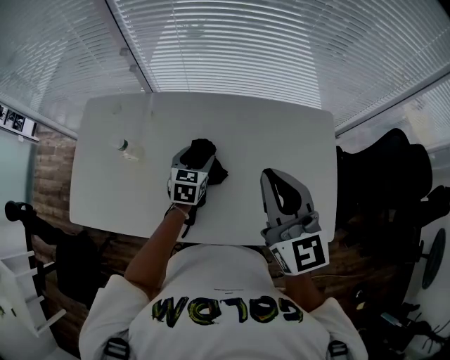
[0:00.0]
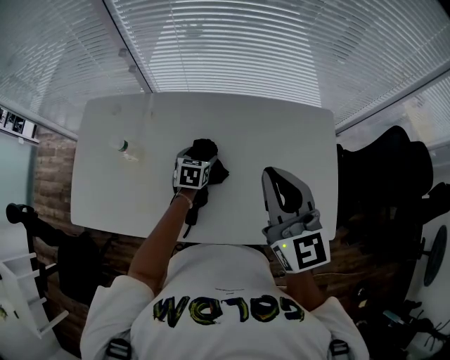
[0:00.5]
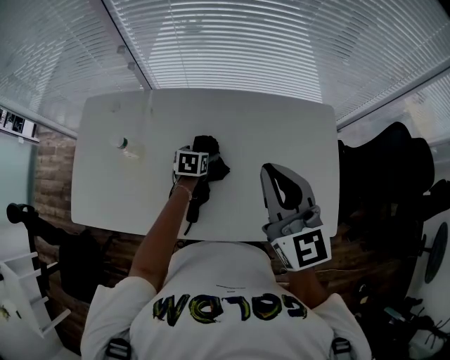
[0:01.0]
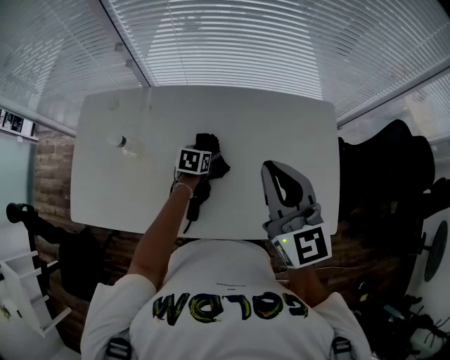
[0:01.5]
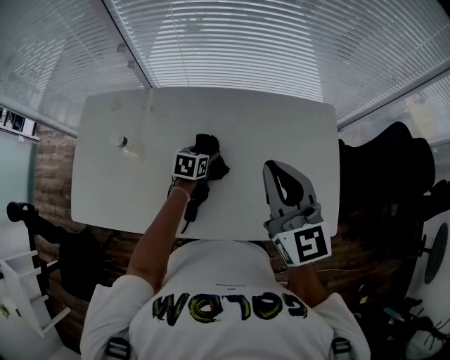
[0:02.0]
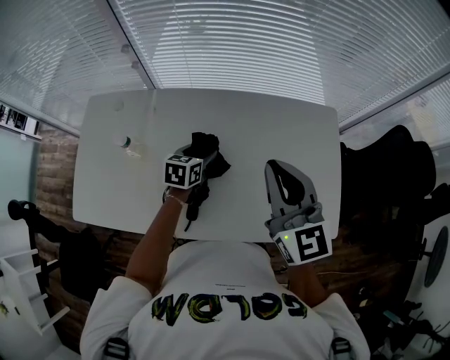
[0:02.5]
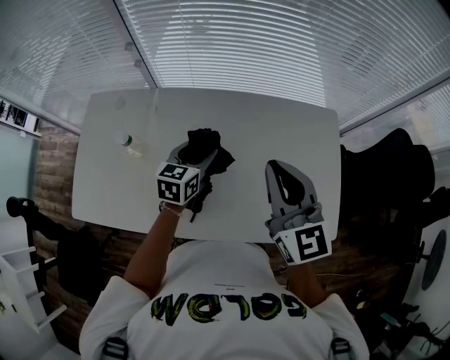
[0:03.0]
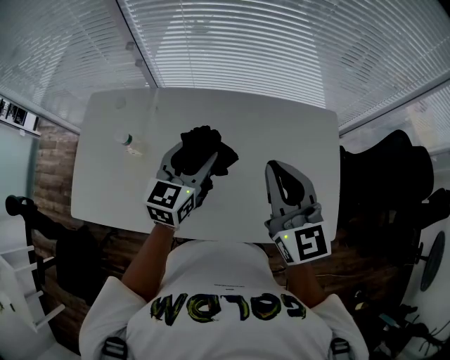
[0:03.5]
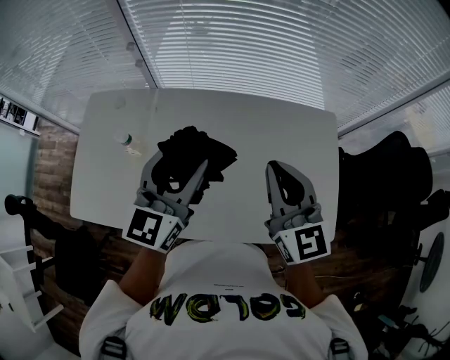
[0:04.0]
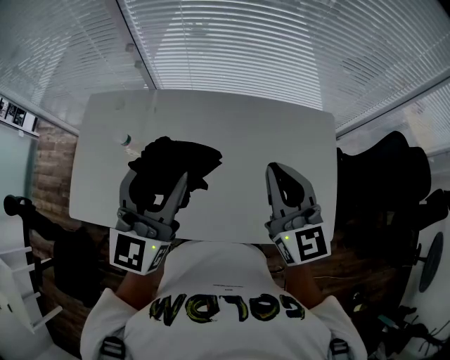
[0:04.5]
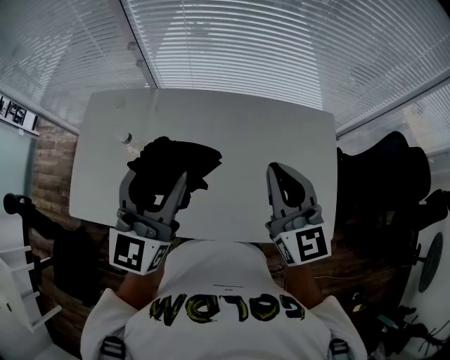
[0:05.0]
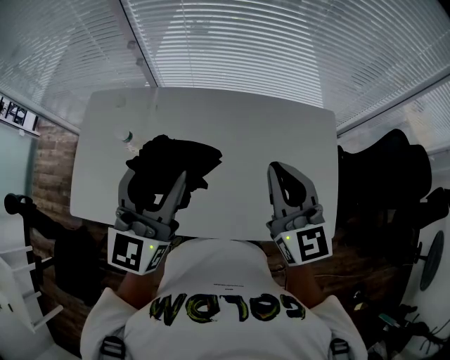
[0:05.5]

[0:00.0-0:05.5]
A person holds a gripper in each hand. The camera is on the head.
0:00.0 to 0:02.0: The left gripper is displaced downward by some 5 cm, rotates about 20 degrees, and opens and closes again.
0:02.0 to 0:03.5: The left gripper is displaced upward by approximately 25 cm, and angles its fingers upward, by about 30 degrees.
0:03.5 to 0:05.5: The left gripper goes about 15 cm upward, backward and to the left, and rotates about 20 degrees.

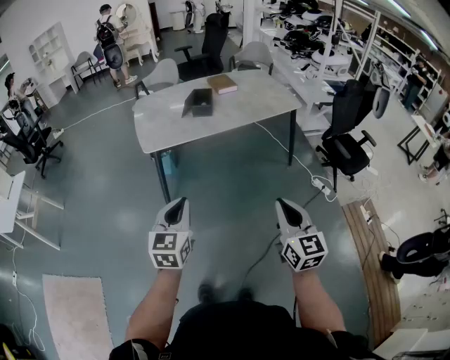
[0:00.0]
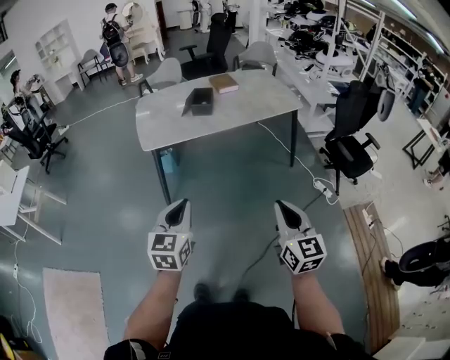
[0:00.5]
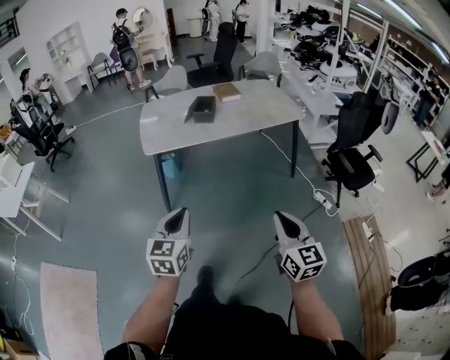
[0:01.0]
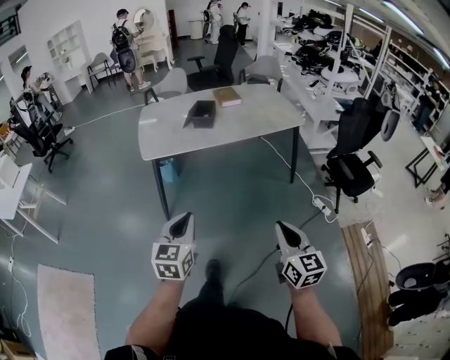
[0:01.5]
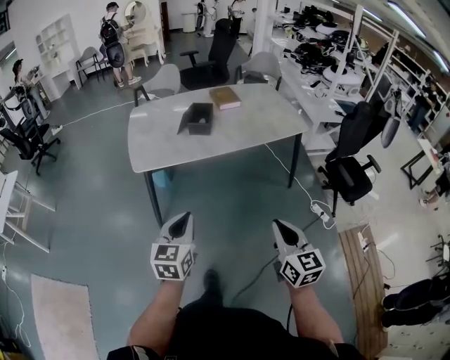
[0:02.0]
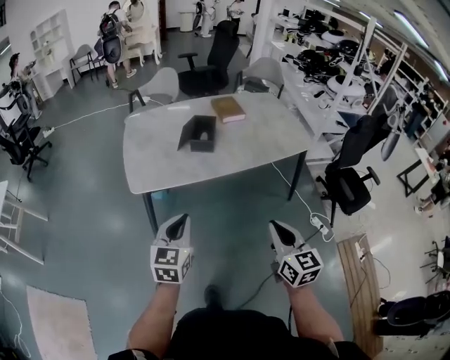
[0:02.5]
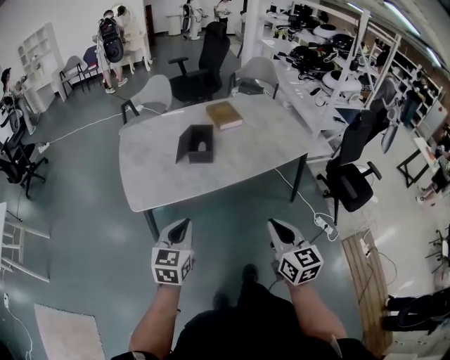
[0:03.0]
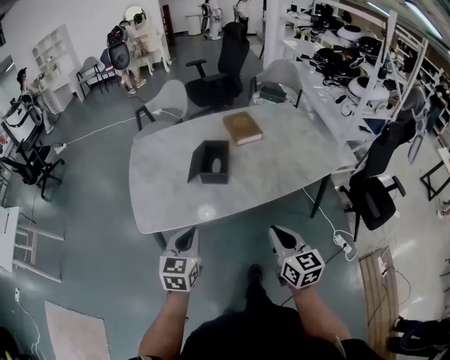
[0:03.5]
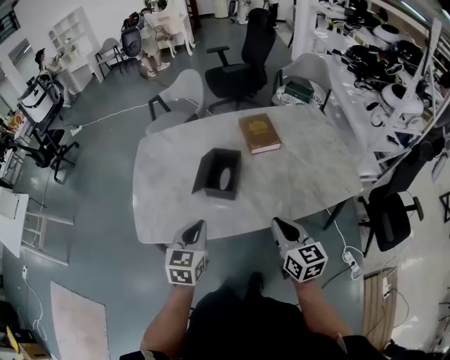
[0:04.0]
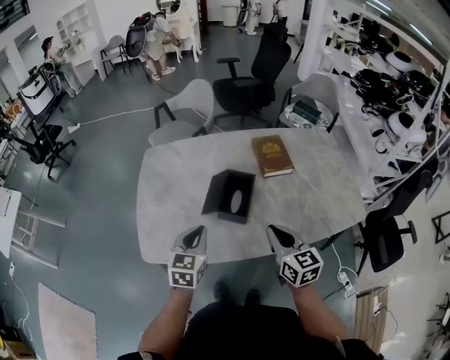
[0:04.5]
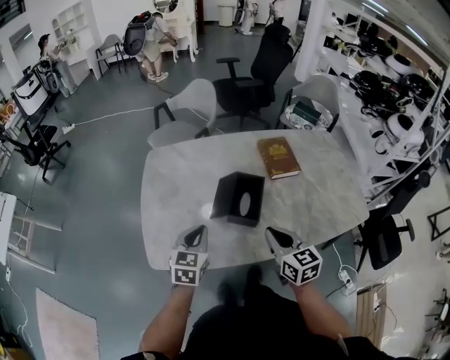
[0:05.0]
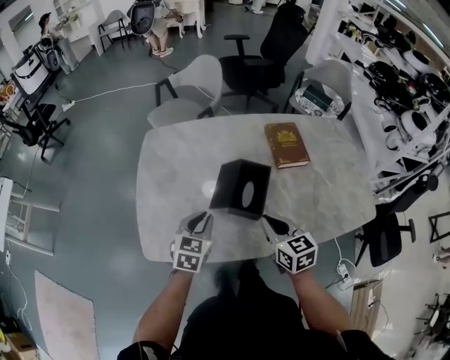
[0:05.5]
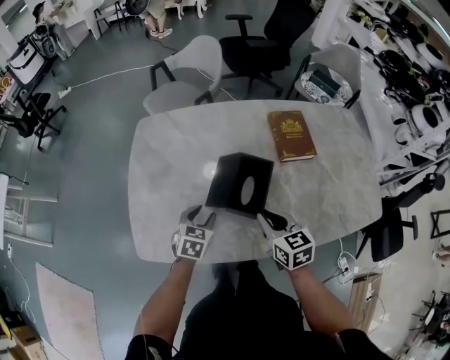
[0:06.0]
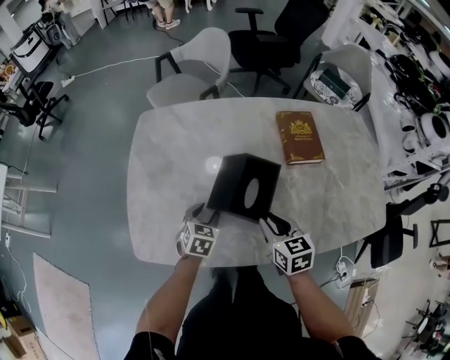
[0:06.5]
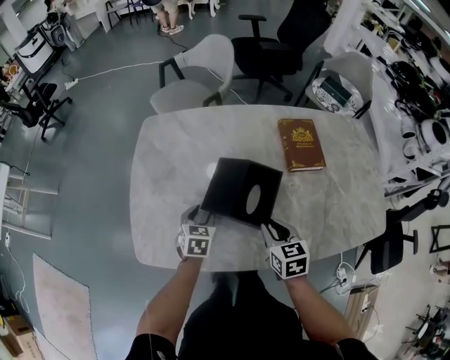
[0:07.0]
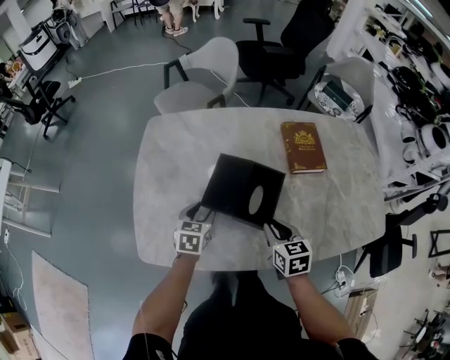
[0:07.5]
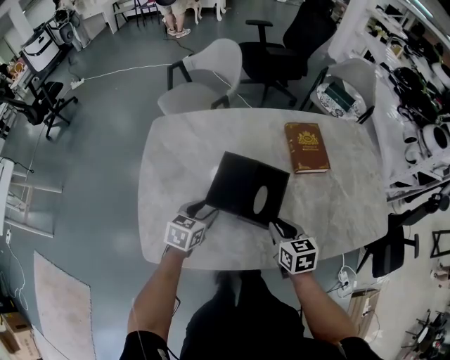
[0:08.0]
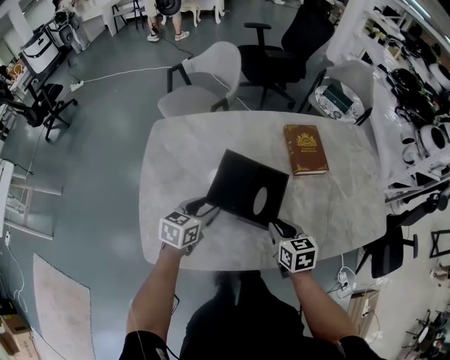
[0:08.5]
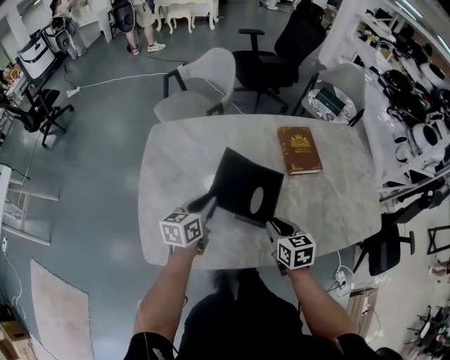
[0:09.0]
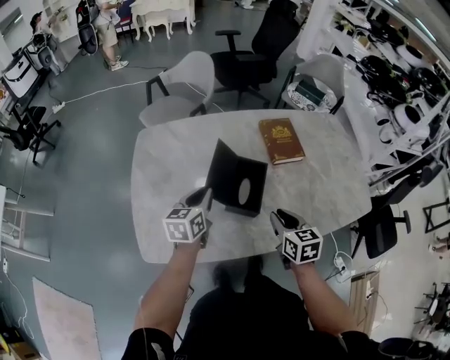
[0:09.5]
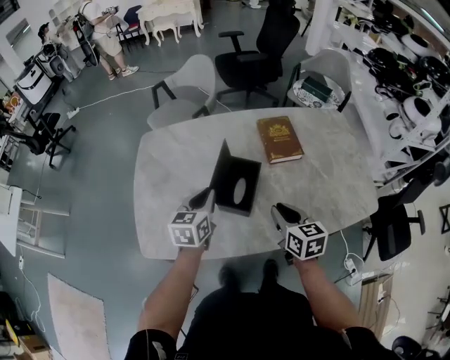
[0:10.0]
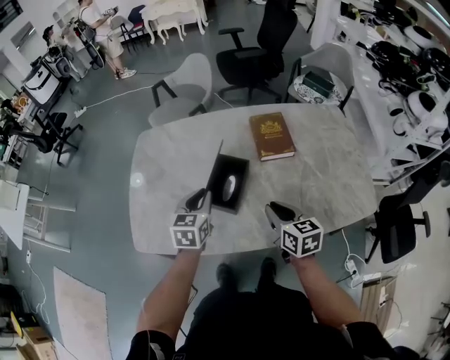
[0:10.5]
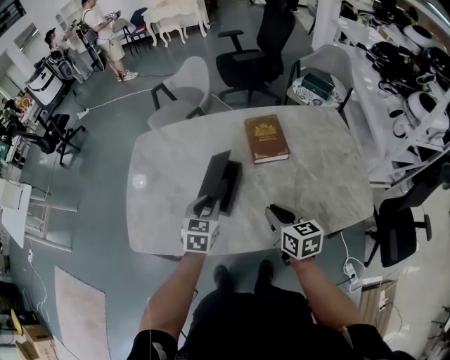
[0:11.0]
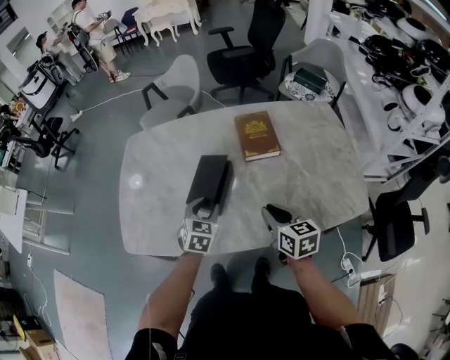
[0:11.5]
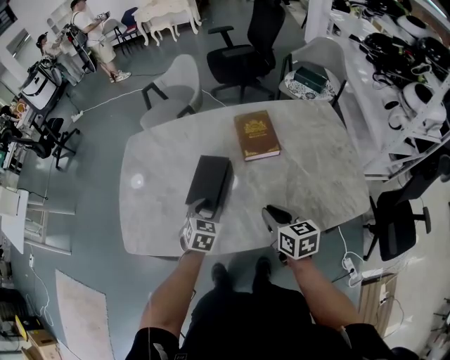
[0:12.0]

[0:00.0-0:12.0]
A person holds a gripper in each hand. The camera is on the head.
0:00.0 to 0:02.0: The left gripper is displaced forward and to the right by approximately 15 cm; the right gripper travels forward by about 15 cm.
0:02.0 to 0:04.0: The two grippers travel together, forward, about 50 cm.
0:04.0 to 0:06.0: The right gripper is displaced forward, to the left and downward by some 30 cm, and swivels some 20 degrees, while the left gripper moves forward, downward and to the left, some 30 cm, and opens.
0:06.0 to 0:08.0: The grippers stay close to where they were, moving slightly.
0:08.0 to 0:10.0: The two grippers go about 15 cm upward and to the right. The left gripper closes.
0:10.0 to 0:12.0: The right gripper goes about 10 cm to the right. The left gripper shifts about 15 cm to the right and downward, rotates approximately 30 degrees, and opens up.

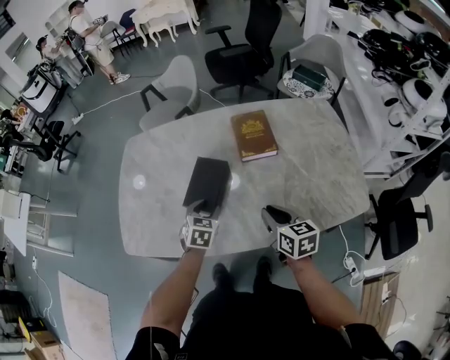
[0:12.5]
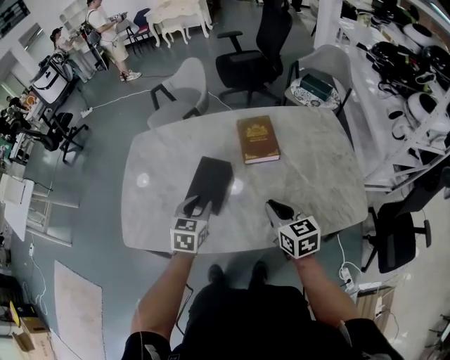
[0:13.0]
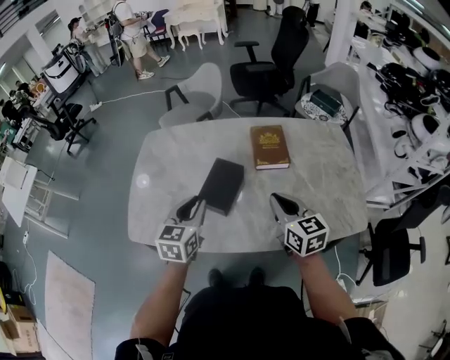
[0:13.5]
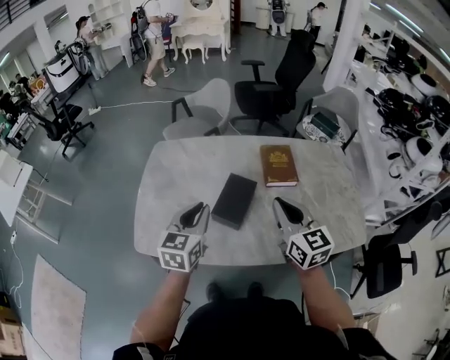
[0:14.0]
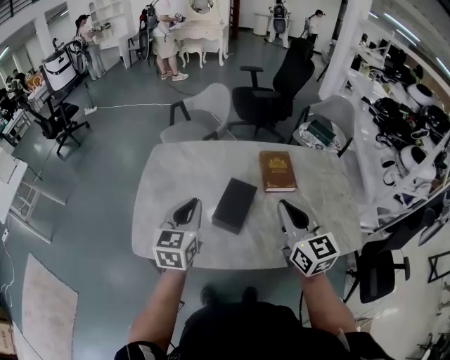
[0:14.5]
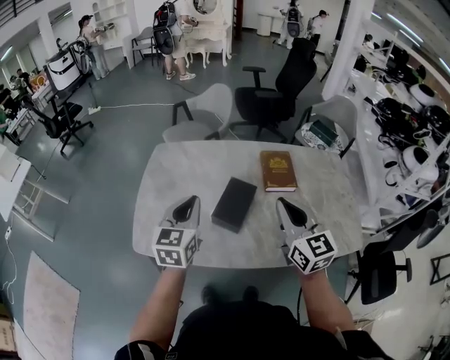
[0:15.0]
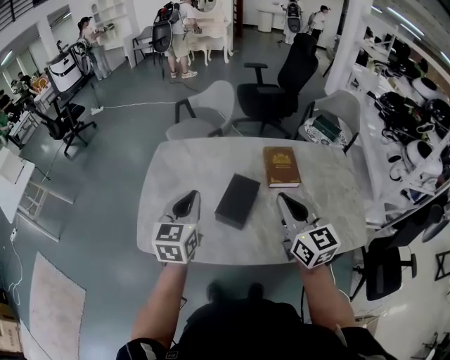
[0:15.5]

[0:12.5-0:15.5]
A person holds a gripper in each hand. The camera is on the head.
0:12.5 to 0:14.0: Both grippers move upward and to the left, some 25 cm. The left gripper turns by some 30 degrees, and closes up; the right gripper swivels roughly 30 degrees.
0:14.0 to 0:15.5: The left gripper shifts by approximately 5 cm.

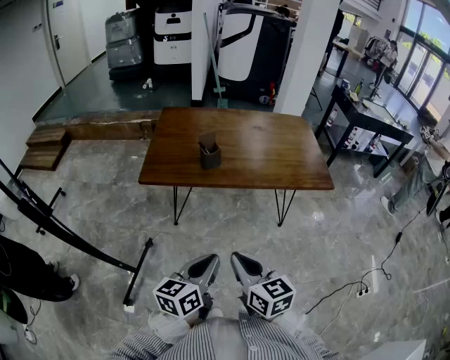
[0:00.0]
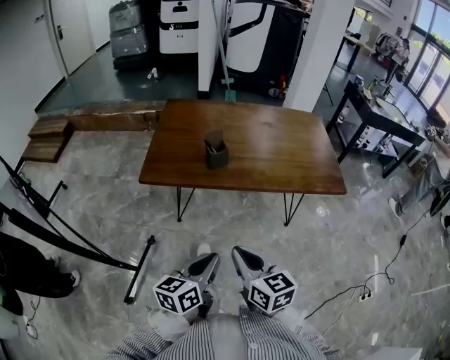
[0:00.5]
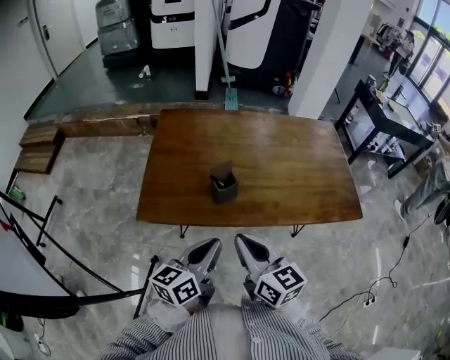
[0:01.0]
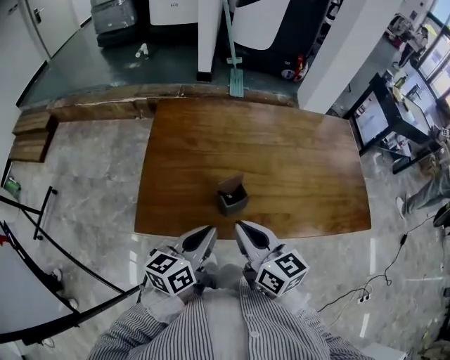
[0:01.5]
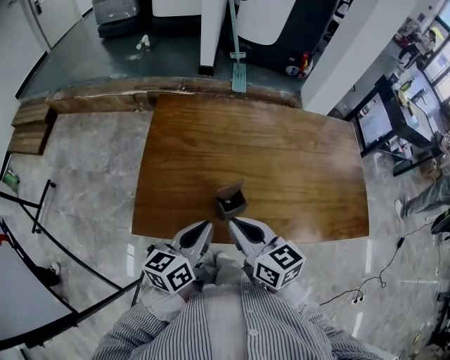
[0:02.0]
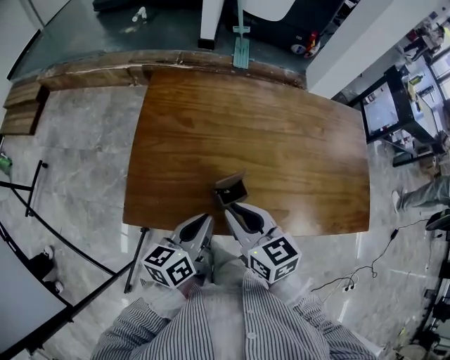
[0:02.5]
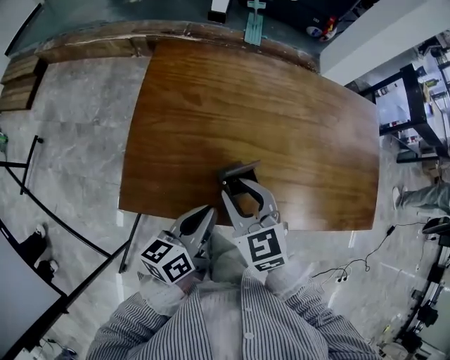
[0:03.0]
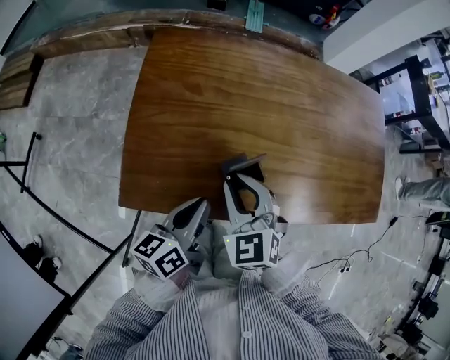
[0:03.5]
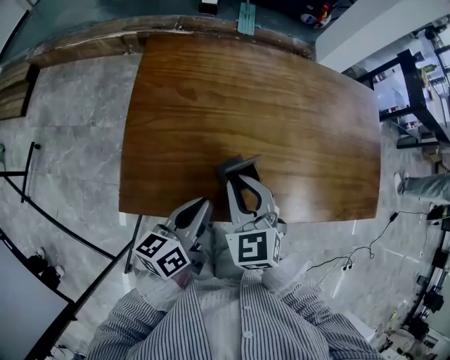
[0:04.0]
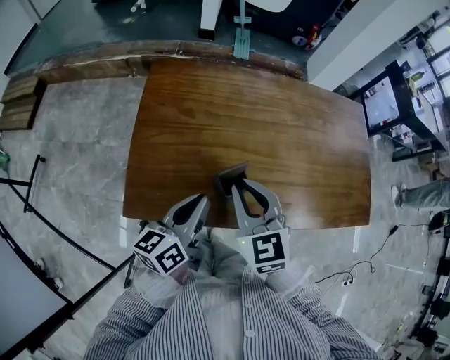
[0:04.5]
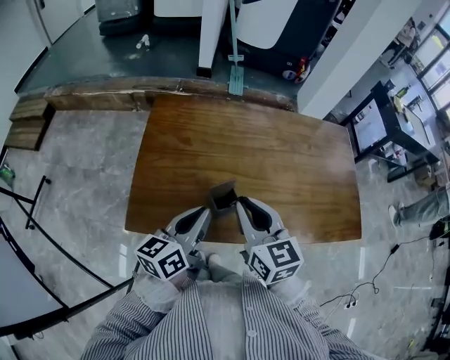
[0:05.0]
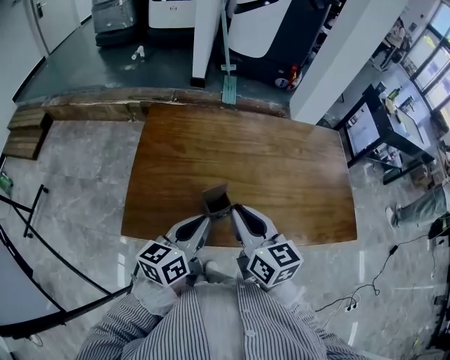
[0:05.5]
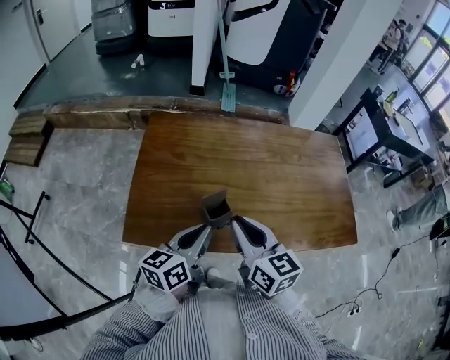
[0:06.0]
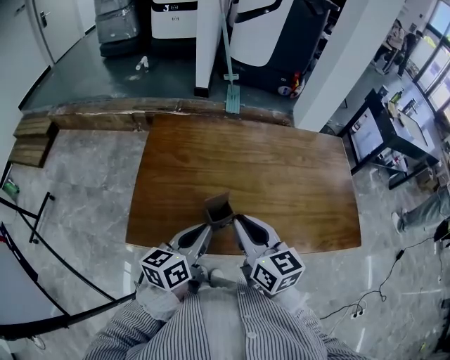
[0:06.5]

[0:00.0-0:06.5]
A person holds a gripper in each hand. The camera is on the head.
0:00.0 to 0:02.0: The pair of grippers is taken forward, roughly 40 cm.
0:02.0 to 0:04.5: The right gripper heads forward, covering approximately 5 cm, and turns by about 30 degrees.
0:04.5 to 0:06.5: The left gripper ends up roughly 5 cm from where it was; the right gripper moves approximately 10 cm, and turns by approximately 30 degrees.
